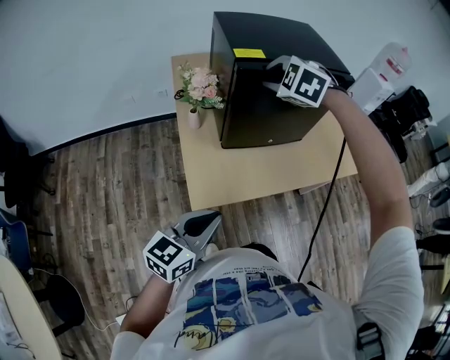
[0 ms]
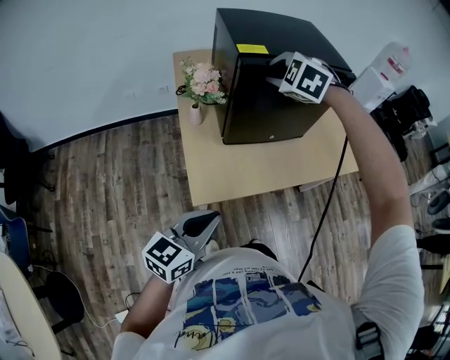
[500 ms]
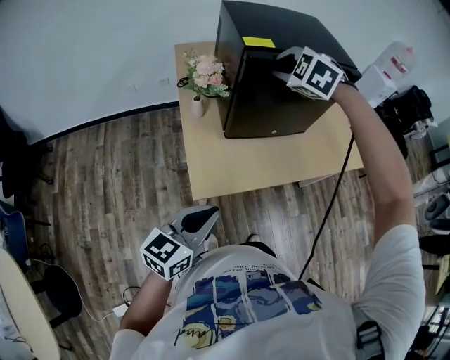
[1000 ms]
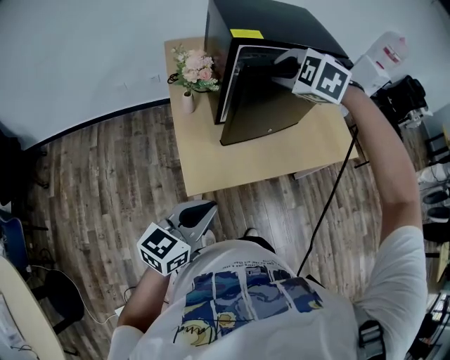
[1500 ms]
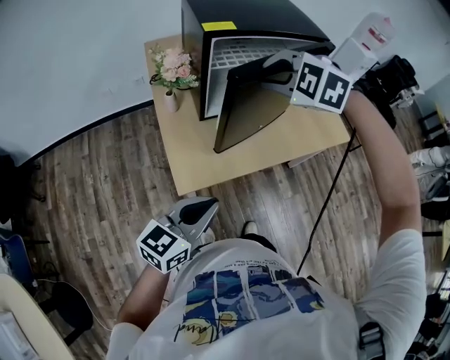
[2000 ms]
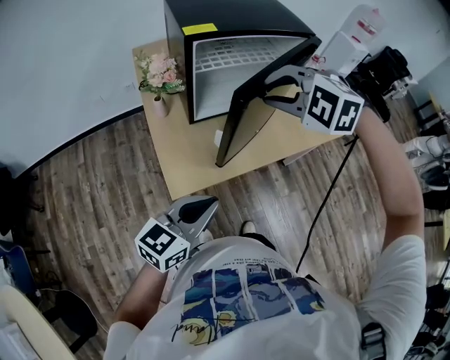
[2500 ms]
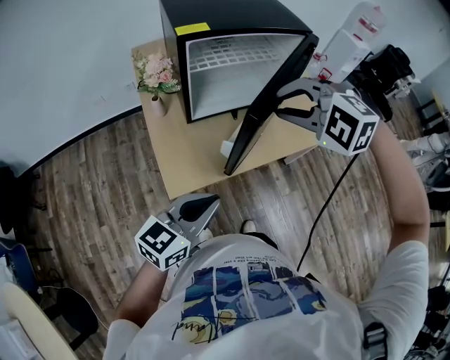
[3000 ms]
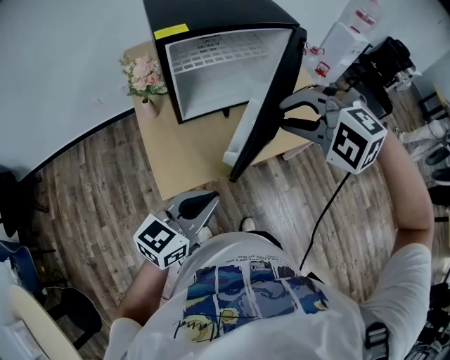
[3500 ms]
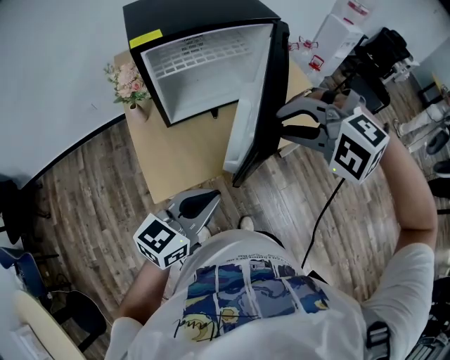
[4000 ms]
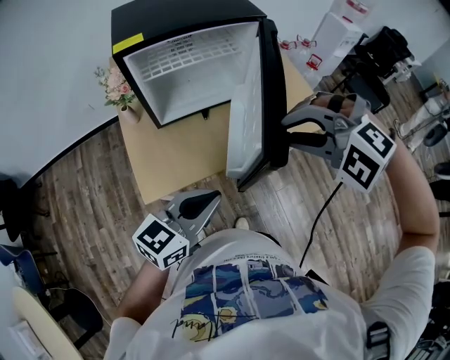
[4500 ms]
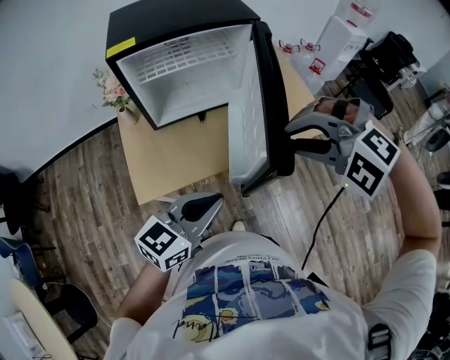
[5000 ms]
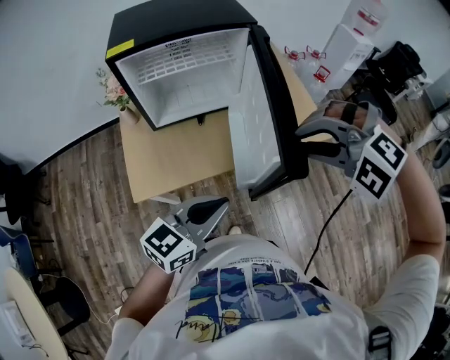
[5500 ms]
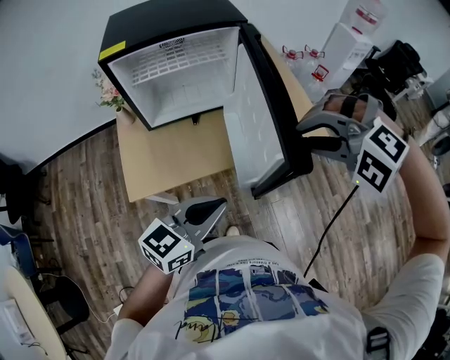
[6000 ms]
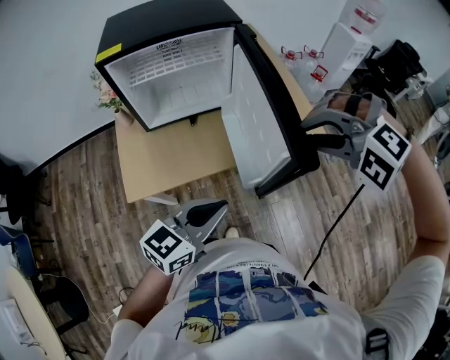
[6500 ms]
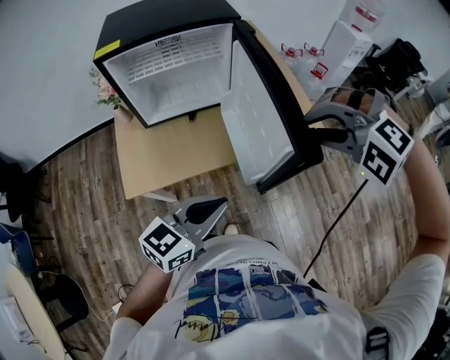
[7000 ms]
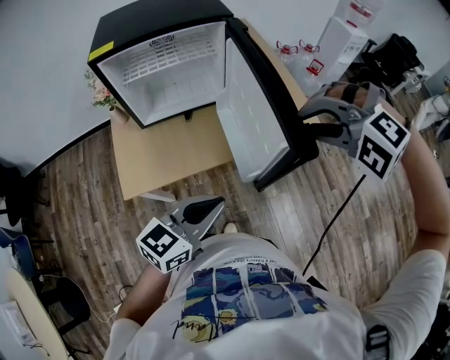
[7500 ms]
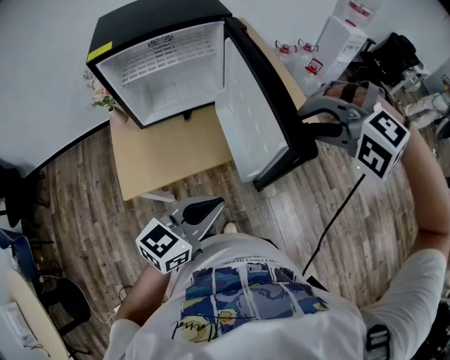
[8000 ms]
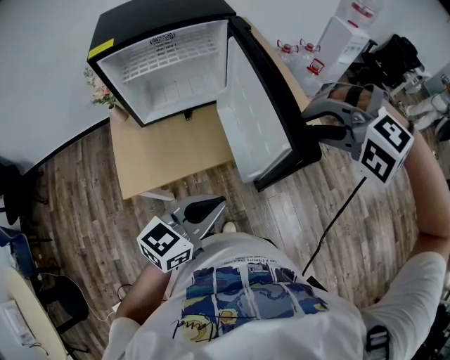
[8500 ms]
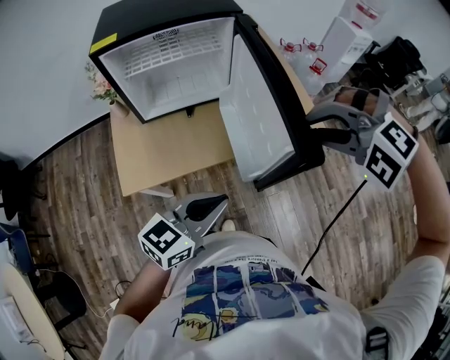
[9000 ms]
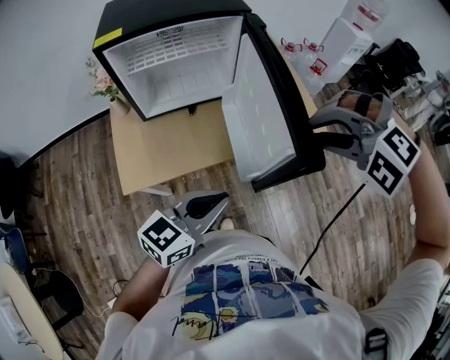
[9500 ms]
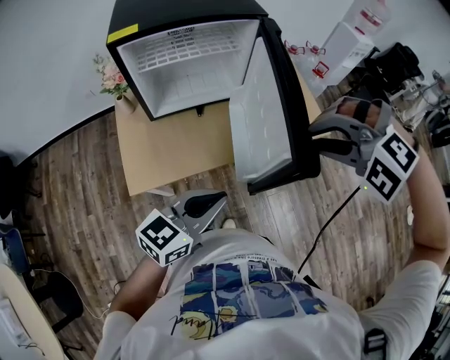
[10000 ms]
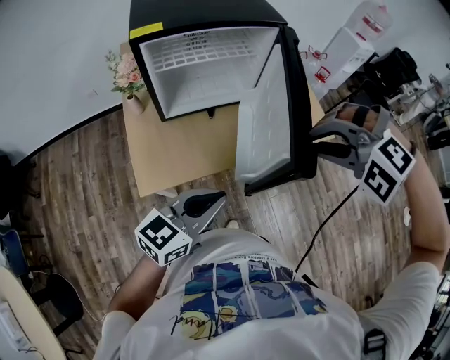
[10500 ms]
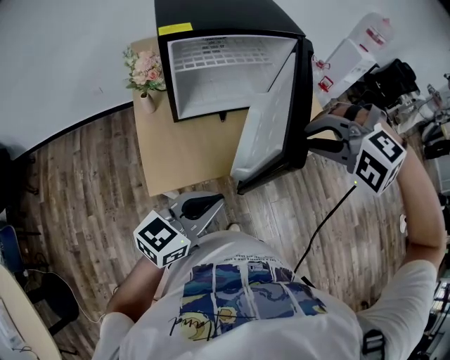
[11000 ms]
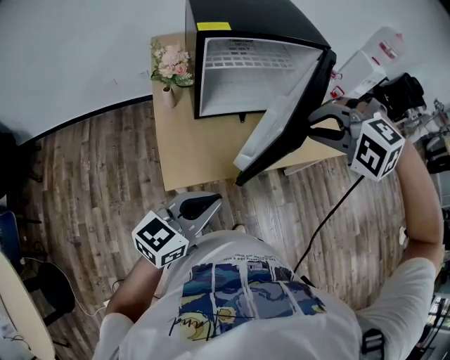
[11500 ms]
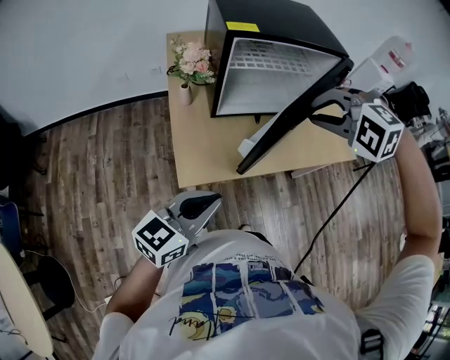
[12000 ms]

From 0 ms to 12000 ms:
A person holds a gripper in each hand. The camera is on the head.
From 0 ms to 2000 ms: The right gripper shifts about 10 cm backward and to the right.
From 2000 ms to 4000 ms: The right gripper heads to the right and backward, covering some 20 cm, while the left gripper goes approximately 15 cm to the right.
From 4000 ms to 6000 ms: Both grippers move to the right, roughly 15 cm.
From 6000 ms to 8000 ms: The grippers move only a little.
From 8000 ms to 10000 ms: The two grippers go roughly 5 cm to the left.
From 10000 ms to 12000 ms: Both grippers travel together to the left, some 25 cm.

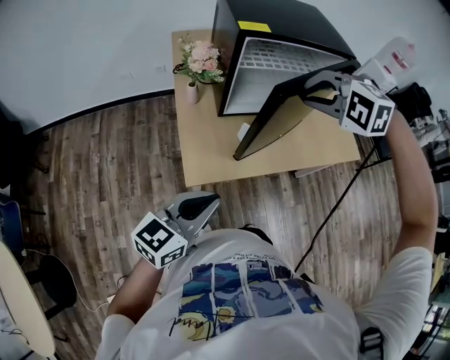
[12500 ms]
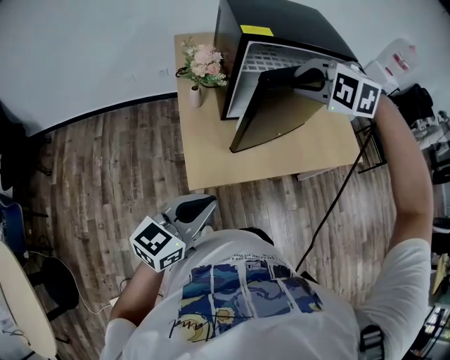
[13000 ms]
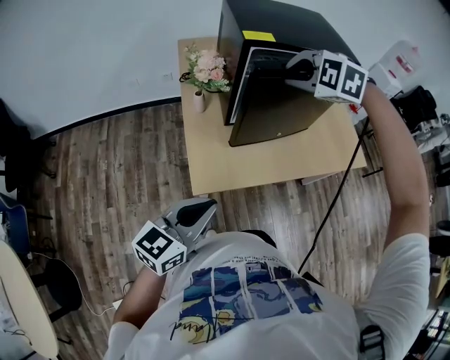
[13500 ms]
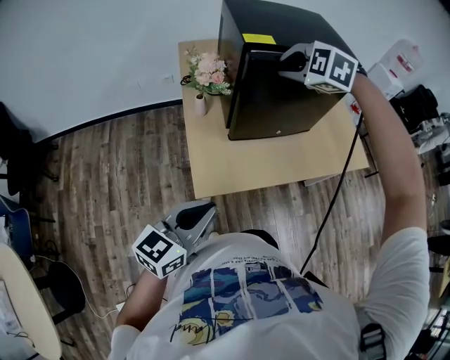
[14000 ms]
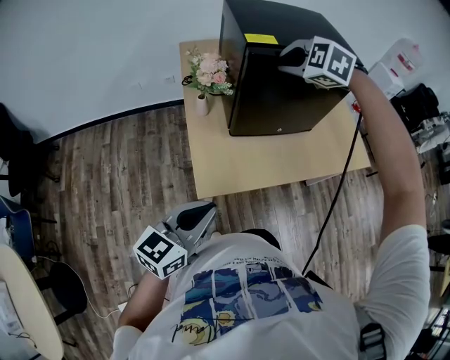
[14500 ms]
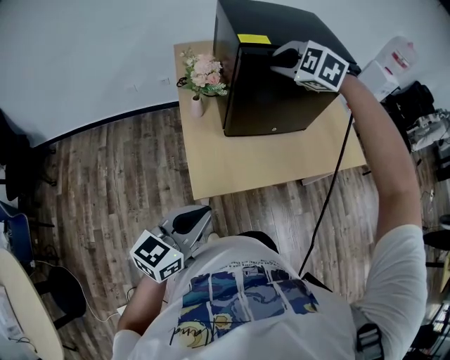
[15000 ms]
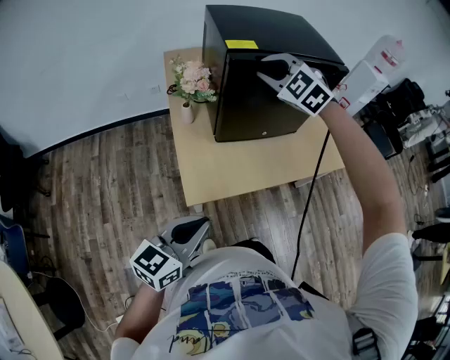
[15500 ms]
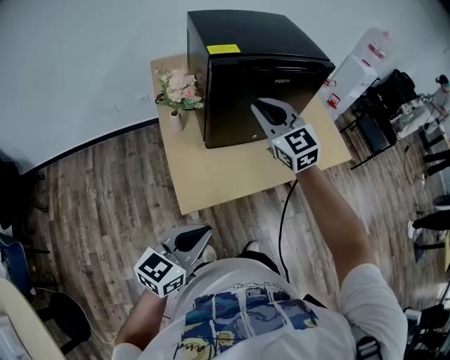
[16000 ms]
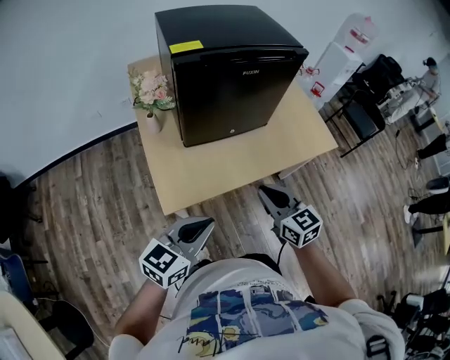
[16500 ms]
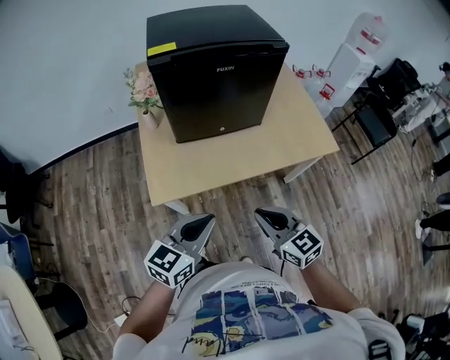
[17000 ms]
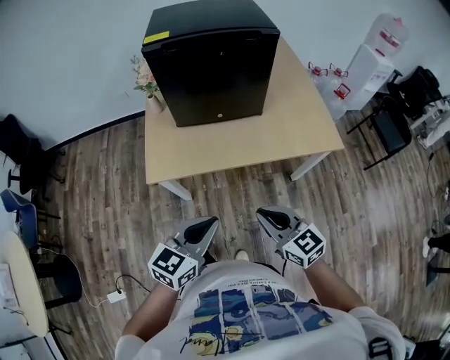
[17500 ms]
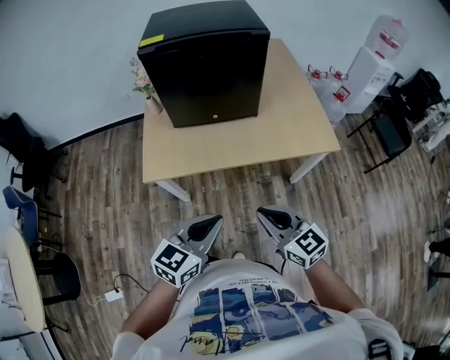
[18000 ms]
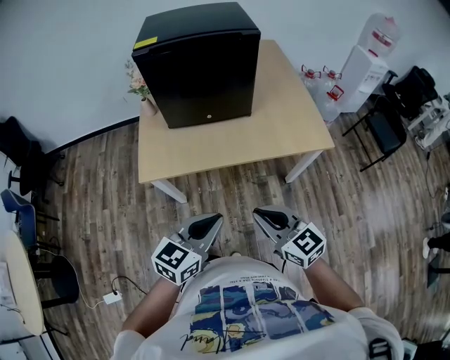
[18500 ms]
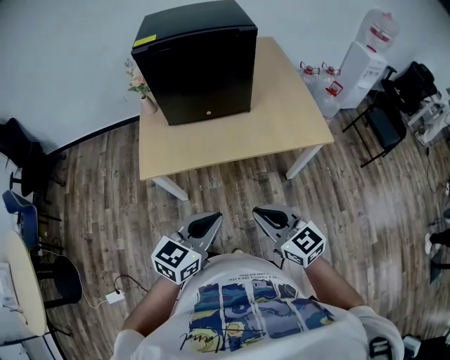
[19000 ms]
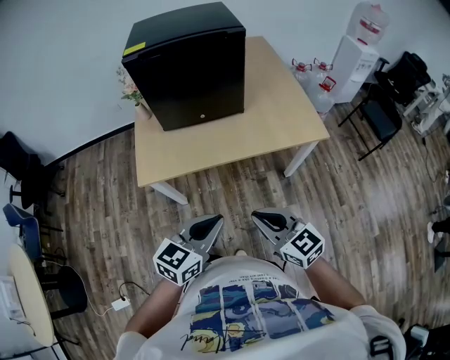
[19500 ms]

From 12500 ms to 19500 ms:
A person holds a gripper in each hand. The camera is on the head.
From 12500 ms to 14500 ms: The right gripper goes about 15 cm forward and to the left.
From 14500 ms to 16000 ms: The right gripper travels backward by approximately 5 cm, and tips its fingers upward by some 40 degrees.
From 16000 ms to 17500 ms: The right gripper heads backward, to the right and downward, covering roughly 40 cm, and turns by about 30 degrees. The left gripper is displaced to the right by roughly 25 cm.
From 17500 ms to 19500 ms: The right gripper changes place by roughly 5 cm; the left gripper travels to the right by approximately 5 cm.

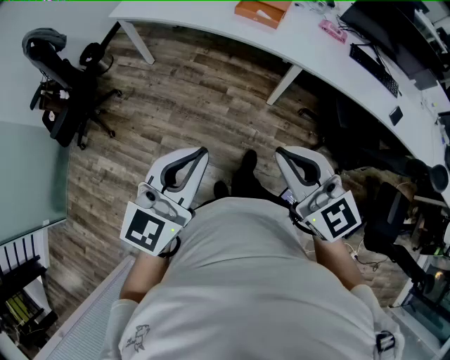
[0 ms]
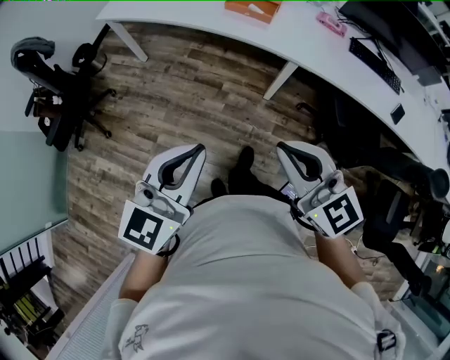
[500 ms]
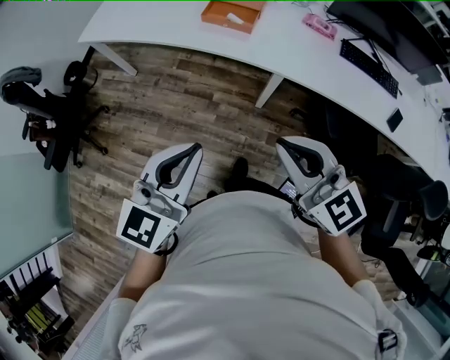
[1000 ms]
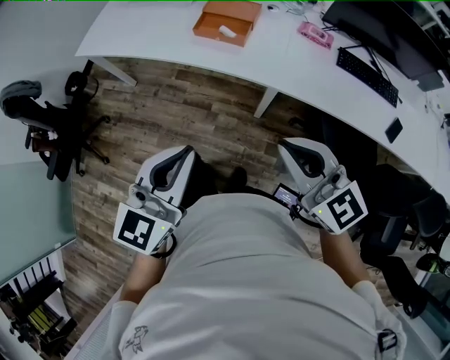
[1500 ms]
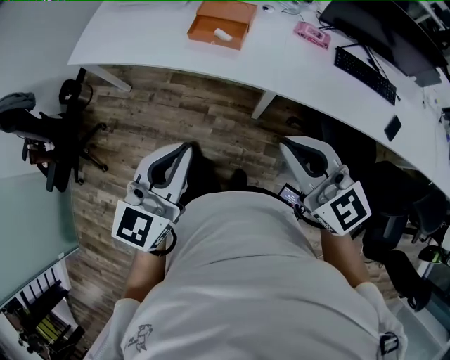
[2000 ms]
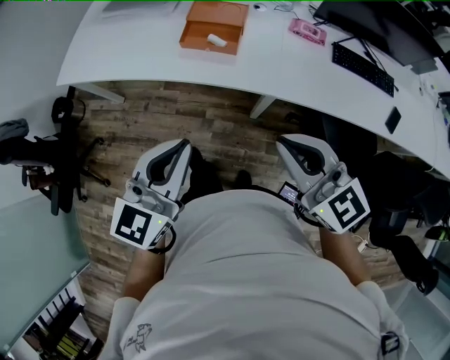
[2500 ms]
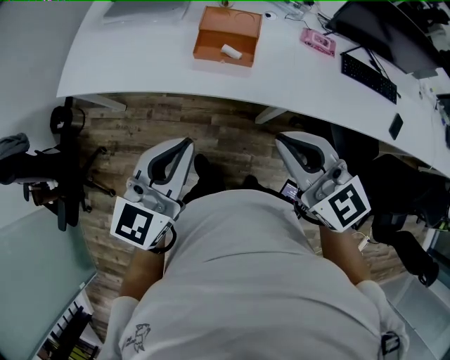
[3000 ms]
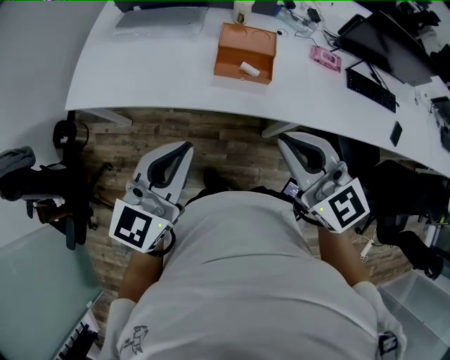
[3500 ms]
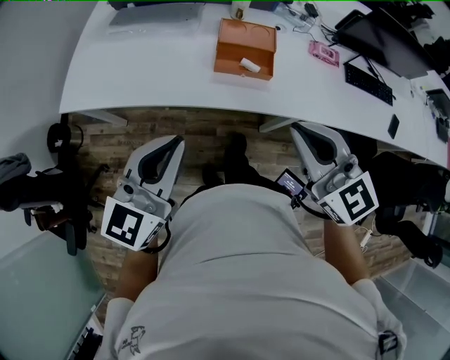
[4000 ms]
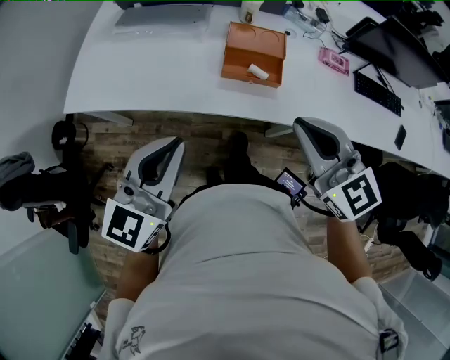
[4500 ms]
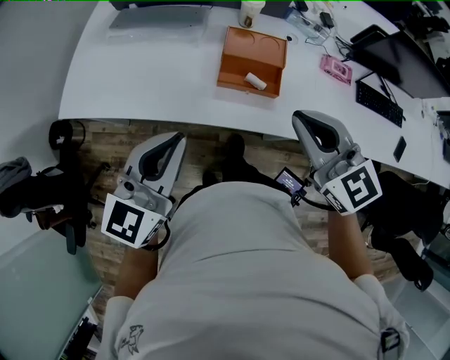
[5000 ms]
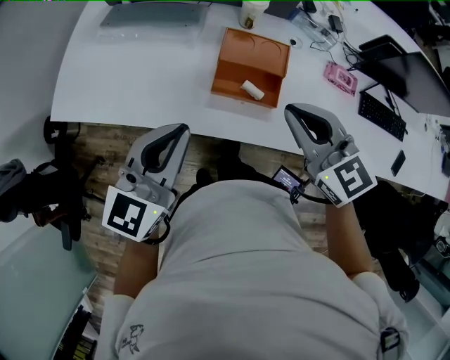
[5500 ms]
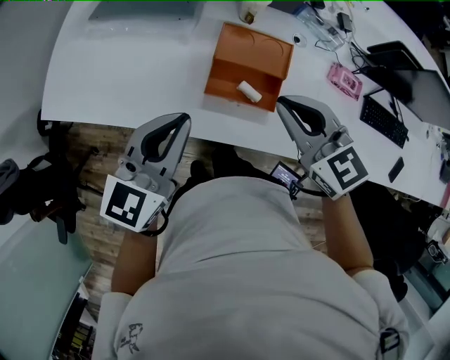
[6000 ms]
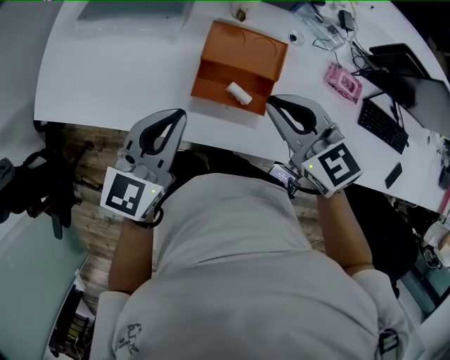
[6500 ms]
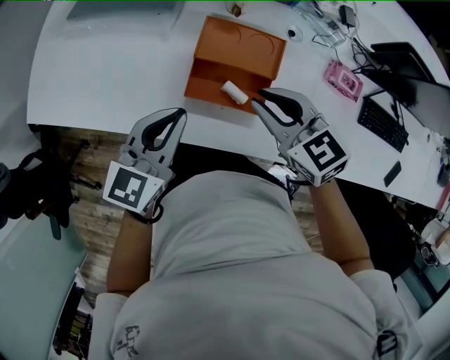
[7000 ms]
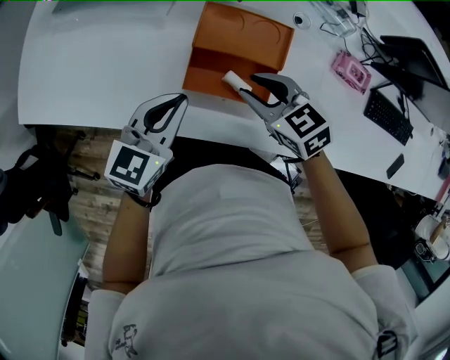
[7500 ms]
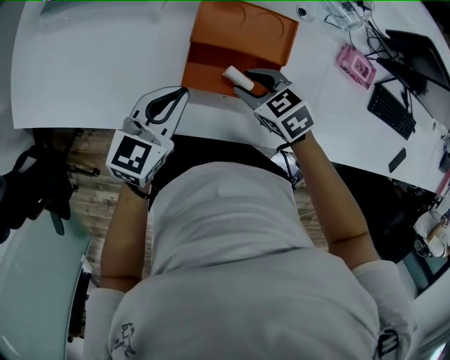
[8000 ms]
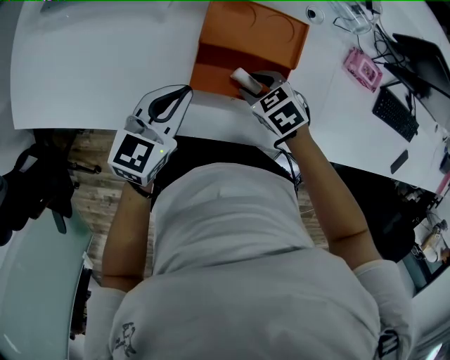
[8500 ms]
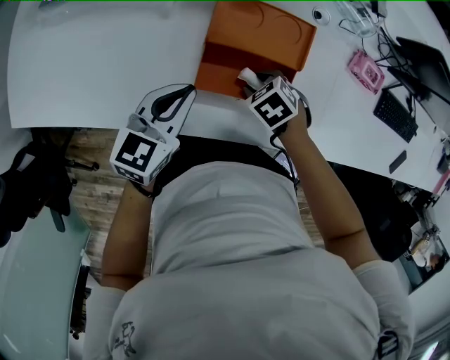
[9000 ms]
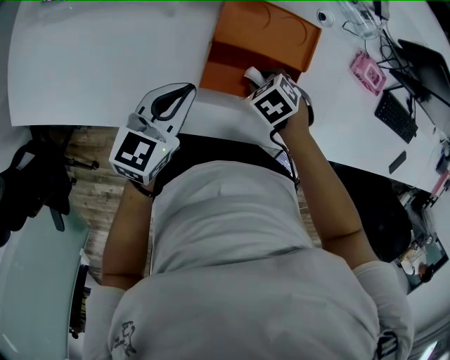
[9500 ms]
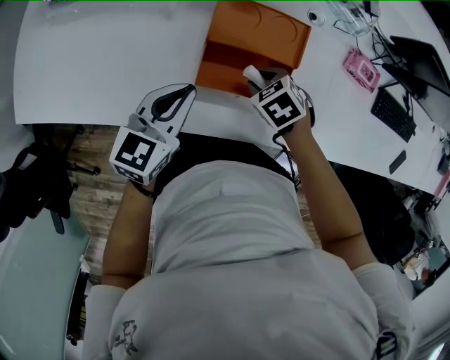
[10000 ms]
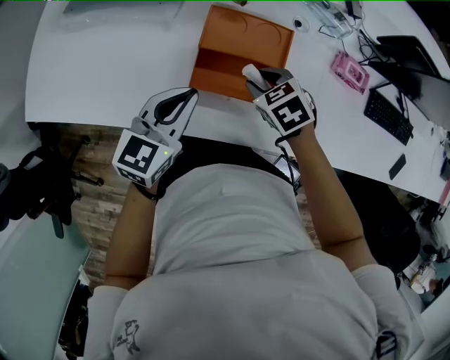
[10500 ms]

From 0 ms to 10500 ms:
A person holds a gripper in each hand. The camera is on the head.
From 0 ms to 2000 ms: The grippers both shift forward and to the right by approximately 30 cm.
From 2000 ms to 4000 ms: The two grippers go some 30 cm to the left and forward.
From 4000 ms to 6500 ms: The left gripper goes about 35 cm forward, downward and to the right. Meanwhile the right gripper moves forward and downward, some 35 cm, and turns by some 20 degrees.
From 6500 ms to 8500 ms: The left gripper is displaced downward by roughly 15 cm. Meanwhile the right gripper is displaced downward by approximately 30 cm, tilts its fingers approximately 40 degrees downward, and opens its fingers.
From 8500 ms to 10500 ms: The grippers both shift upward by approximately 10 cm.
